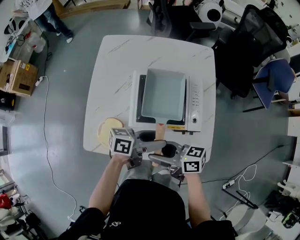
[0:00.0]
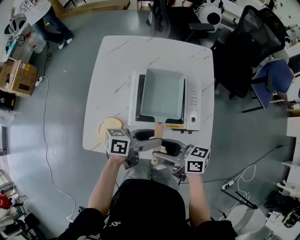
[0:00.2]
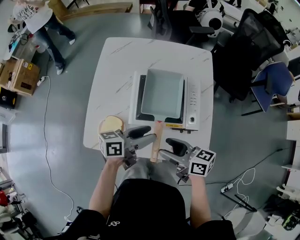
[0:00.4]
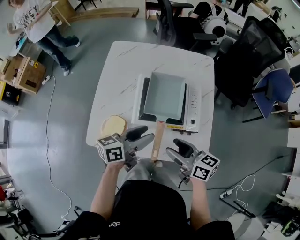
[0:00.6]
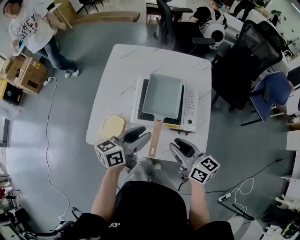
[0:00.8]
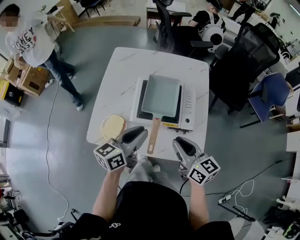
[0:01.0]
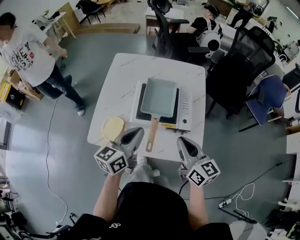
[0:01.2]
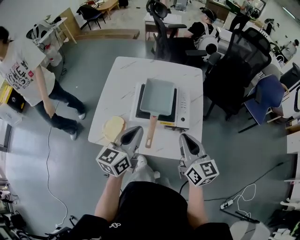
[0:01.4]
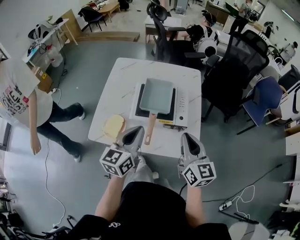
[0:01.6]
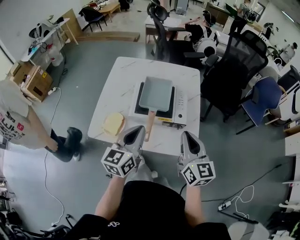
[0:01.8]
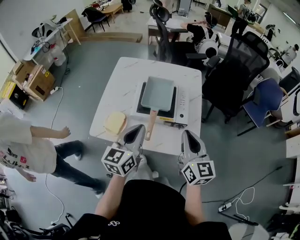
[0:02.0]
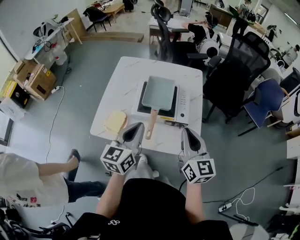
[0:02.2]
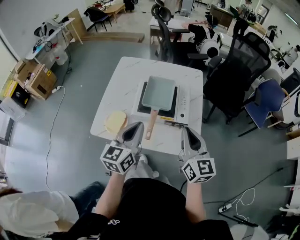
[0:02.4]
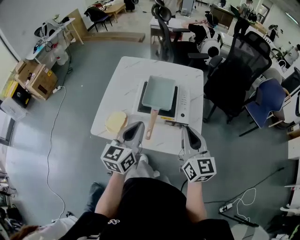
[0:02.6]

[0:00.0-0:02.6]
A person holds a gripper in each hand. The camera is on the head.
0:00.0 to 0:01.2: The right gripper moves about 15 cm, changes its angle by roughly 50 degrees, and closes up. The left gripper travels upward by about 10 cm, changes its angle by roughly 50 degrees, and closes.
0:01.2 to 0:02.6: The right gripper is displaced upward by some 5 cm. Meanwhile the left gripper ends up about 5 cm from where it was.

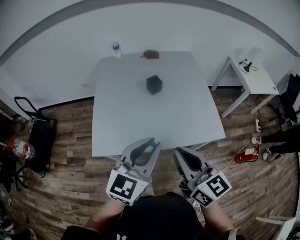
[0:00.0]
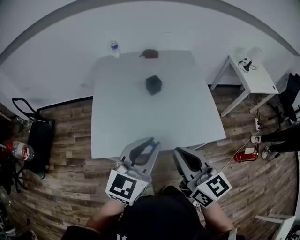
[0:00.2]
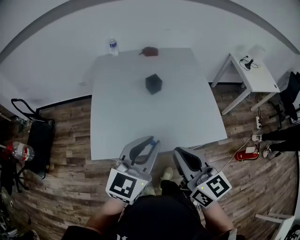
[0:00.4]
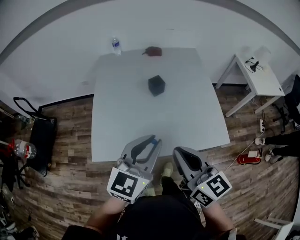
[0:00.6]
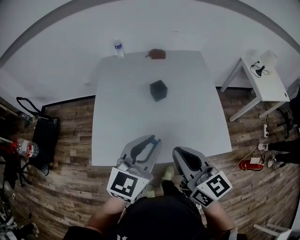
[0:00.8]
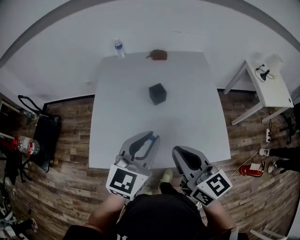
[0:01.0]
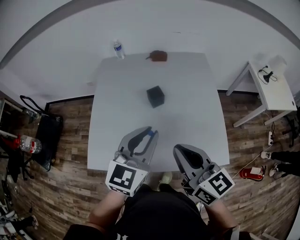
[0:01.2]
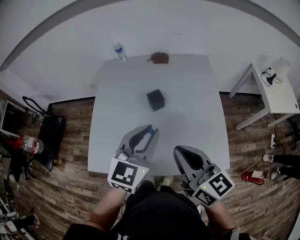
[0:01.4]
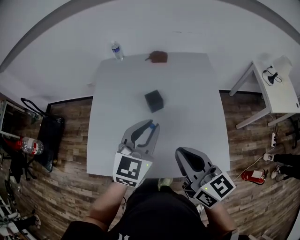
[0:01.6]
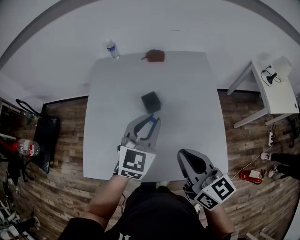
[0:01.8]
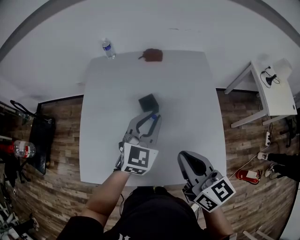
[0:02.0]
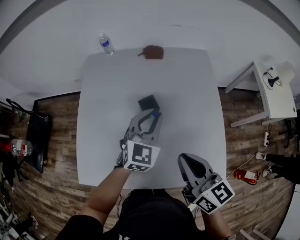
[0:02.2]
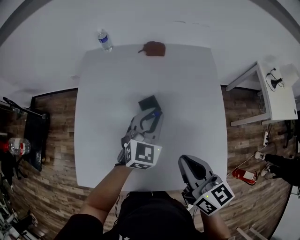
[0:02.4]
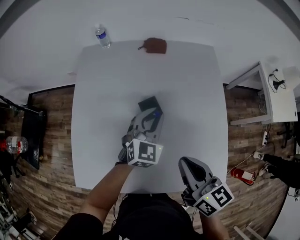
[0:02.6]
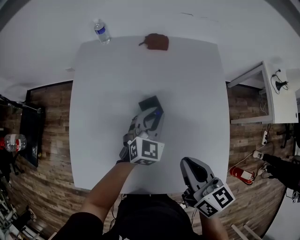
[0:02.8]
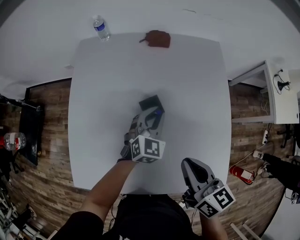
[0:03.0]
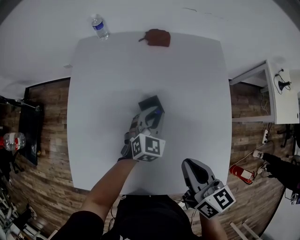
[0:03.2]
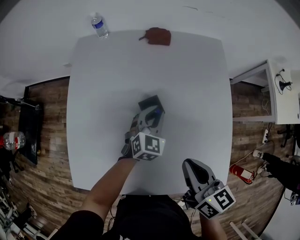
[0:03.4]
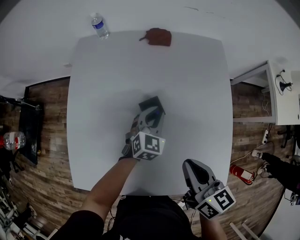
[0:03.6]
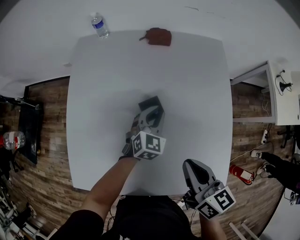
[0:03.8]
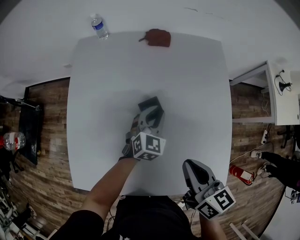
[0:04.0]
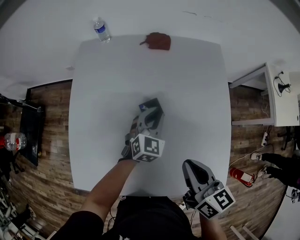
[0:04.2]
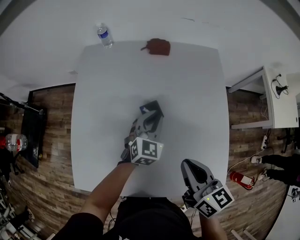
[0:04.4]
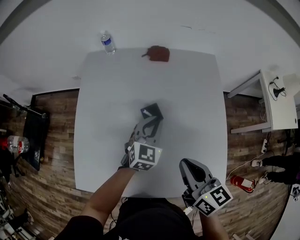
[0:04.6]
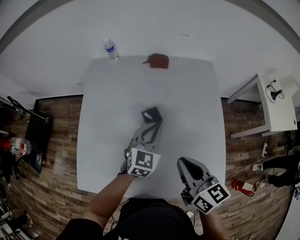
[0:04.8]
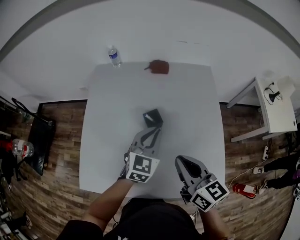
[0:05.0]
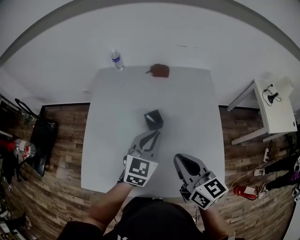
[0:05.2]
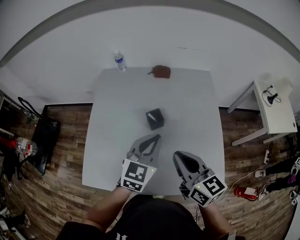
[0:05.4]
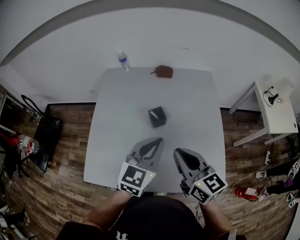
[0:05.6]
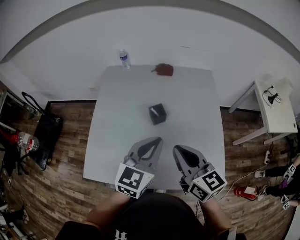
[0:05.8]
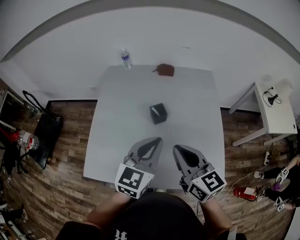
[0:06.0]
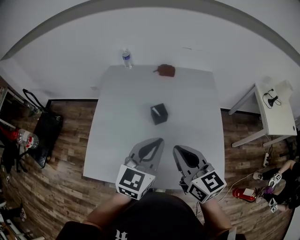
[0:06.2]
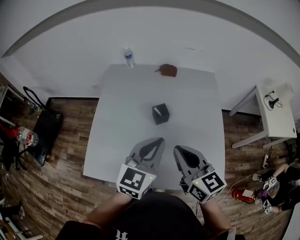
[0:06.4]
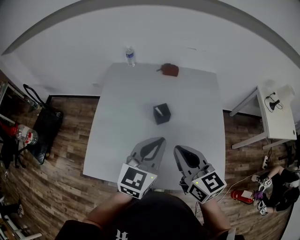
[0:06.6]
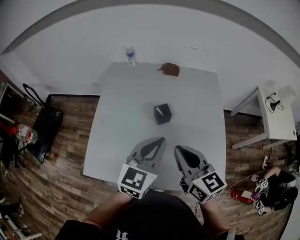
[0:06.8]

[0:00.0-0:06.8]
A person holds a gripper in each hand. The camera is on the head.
0:00.0 to 0:01.4: The left gripper heads forward, covering approximately 20 cm, while the right gripper heads forward and to the right, covering roughly 20 cm.
0:01.4 to 0:02.8: The right gripper travels forward and downward by about 20 cm, and turns by roughly 20 degrees. Meanwhile the left gripper travels forward and downward by approximately 30 cm.
0:02.8 to 0:04.0: The left gripper heads downward, covering some 5 cm.
0:04.0 to 0:05.4: The left gripper goes roughly 25 cm upward and backward. Meanwhile the right gripper travels upward and backward by approximately 10 cm, and swivels approximately 20 degrees.
0:05.4 to 0:06.8: The left gripper changes place by roughly 5 cm.

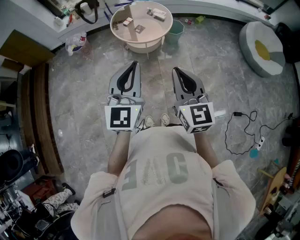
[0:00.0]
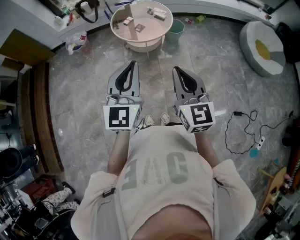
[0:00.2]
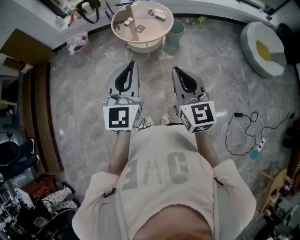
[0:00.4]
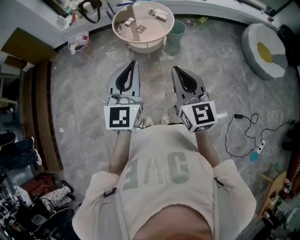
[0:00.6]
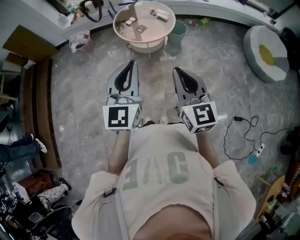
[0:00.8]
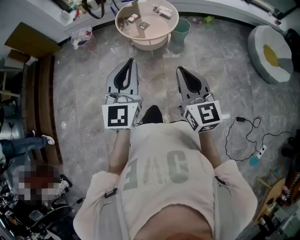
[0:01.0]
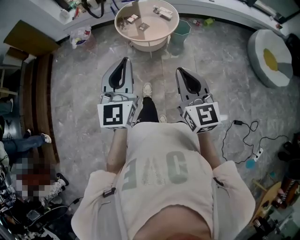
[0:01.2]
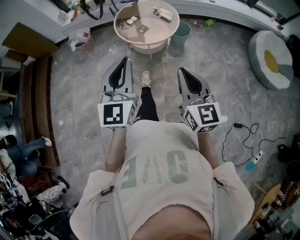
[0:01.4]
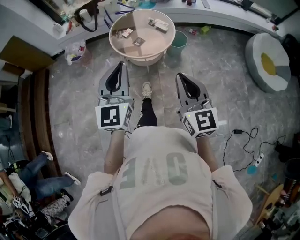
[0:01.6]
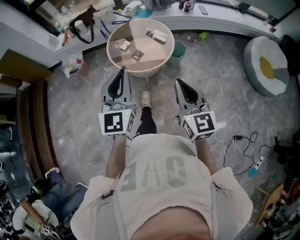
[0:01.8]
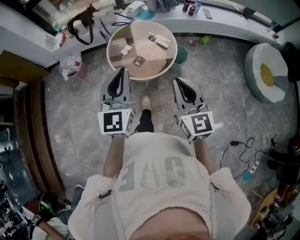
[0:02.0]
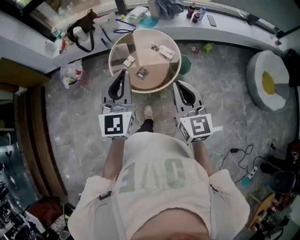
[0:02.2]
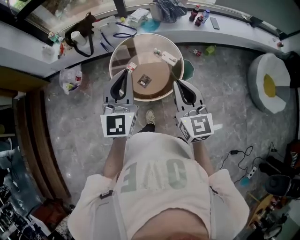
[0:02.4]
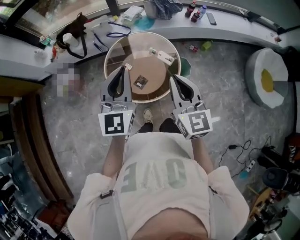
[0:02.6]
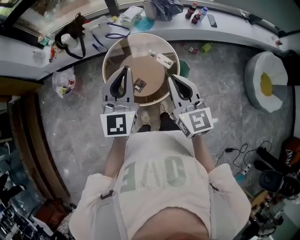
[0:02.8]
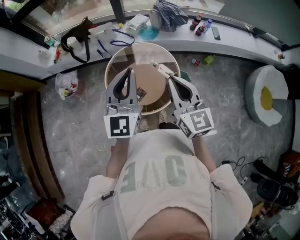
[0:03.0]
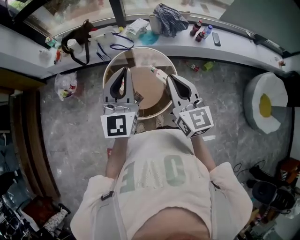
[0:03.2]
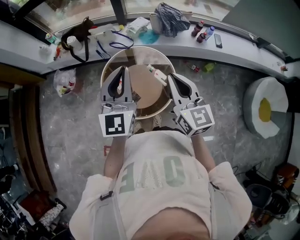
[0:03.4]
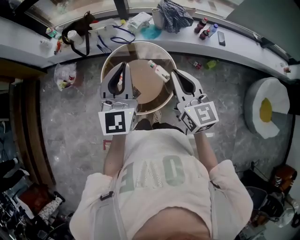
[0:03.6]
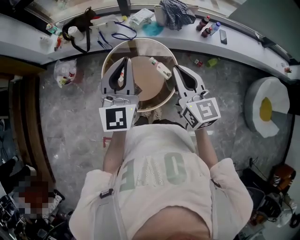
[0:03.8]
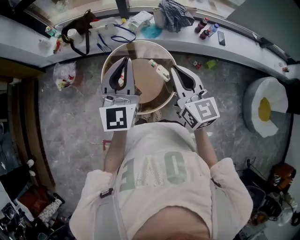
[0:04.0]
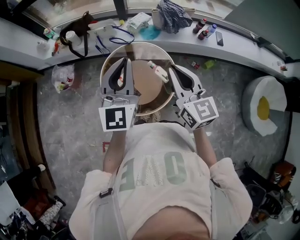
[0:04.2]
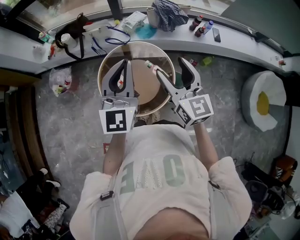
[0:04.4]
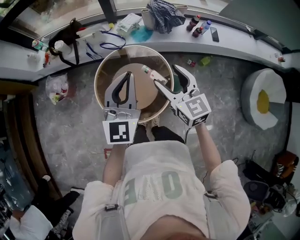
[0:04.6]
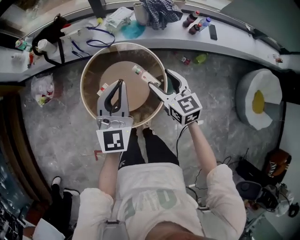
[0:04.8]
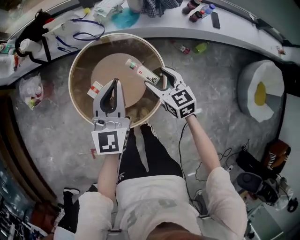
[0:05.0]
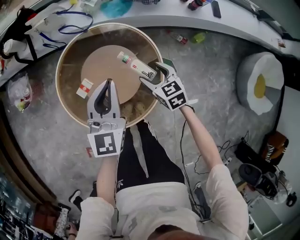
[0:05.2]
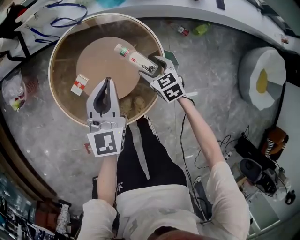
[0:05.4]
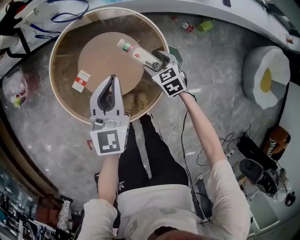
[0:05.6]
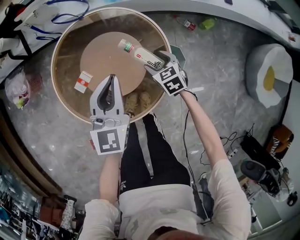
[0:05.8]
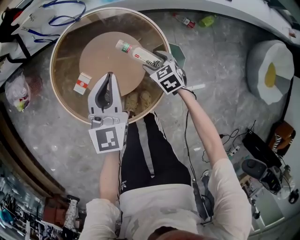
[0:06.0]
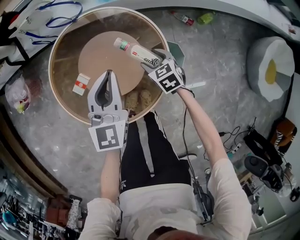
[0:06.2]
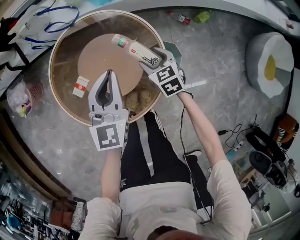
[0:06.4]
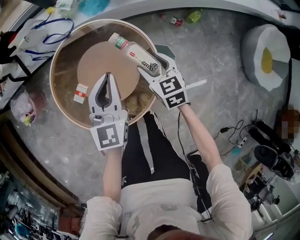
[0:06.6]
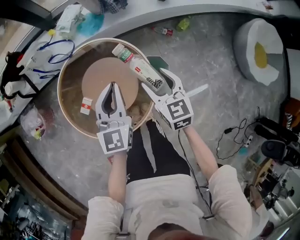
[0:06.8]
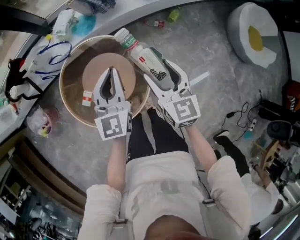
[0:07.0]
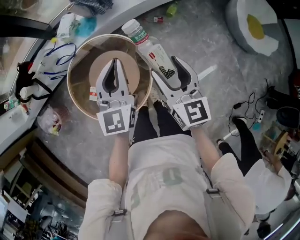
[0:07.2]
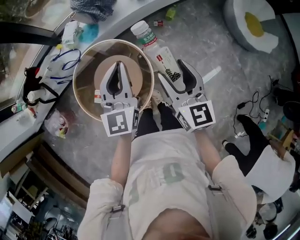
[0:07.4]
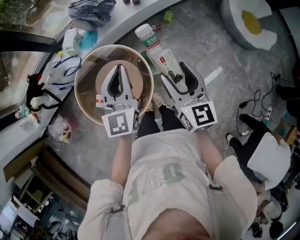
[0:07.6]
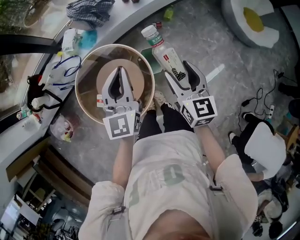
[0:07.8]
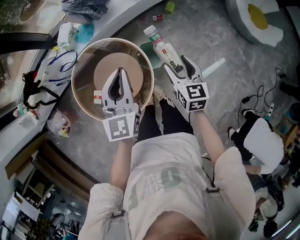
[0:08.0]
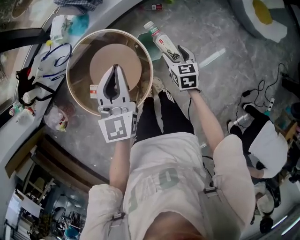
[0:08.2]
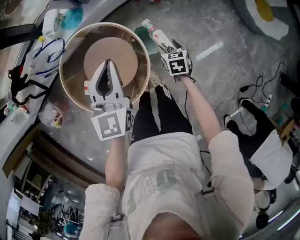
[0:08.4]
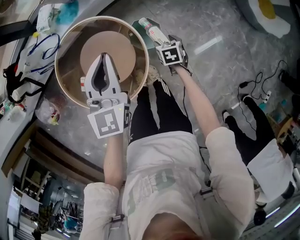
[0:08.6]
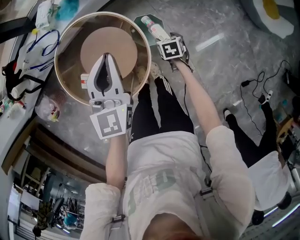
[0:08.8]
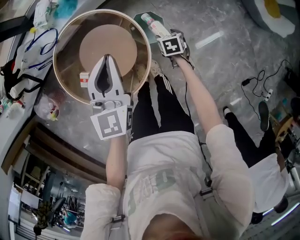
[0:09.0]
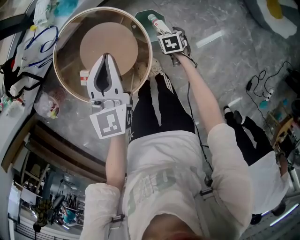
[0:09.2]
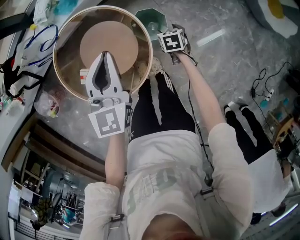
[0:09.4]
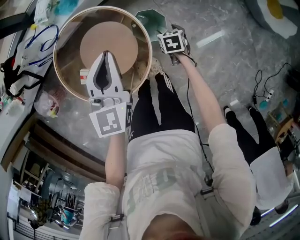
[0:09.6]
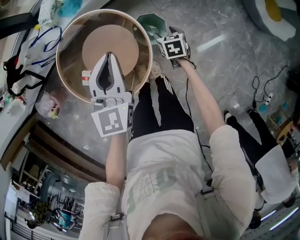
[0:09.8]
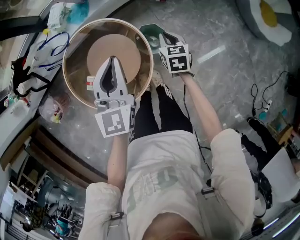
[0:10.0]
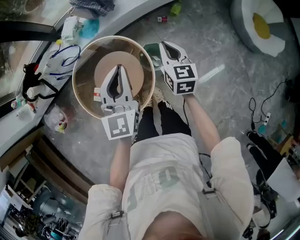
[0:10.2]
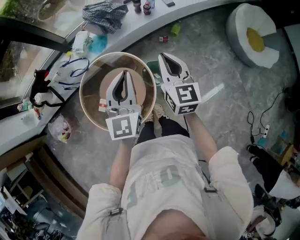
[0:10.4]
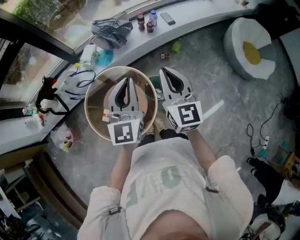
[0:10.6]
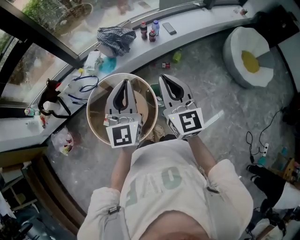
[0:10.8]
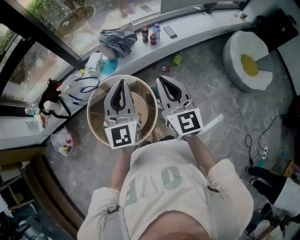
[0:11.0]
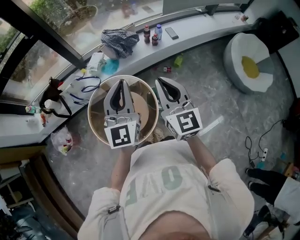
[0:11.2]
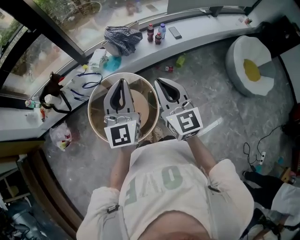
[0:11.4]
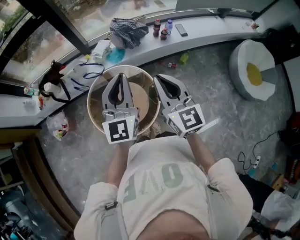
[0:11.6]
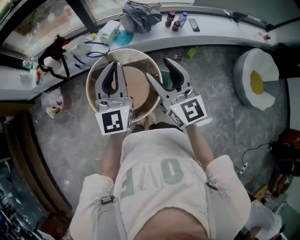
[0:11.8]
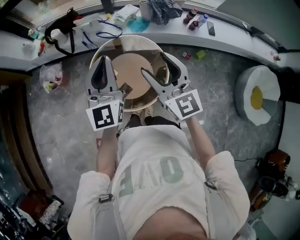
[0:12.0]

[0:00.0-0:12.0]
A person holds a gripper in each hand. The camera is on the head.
0:00.0 to 0:01.6: The right gripper moves forward and to the right, some 15 cm, while the left gripper heads forward, covering approximately 15 cm.
0:01.6 to 0:03.0: The pair of grippers is taken forward, approximately 50 cm.
0:03.0 to 0:04.4: The grippers both shift forward by roughly 5 cm. The right gripper opens.
0:04.4 to 0:06.0: The two grippers go about 50 cm downward. The left gripper swivels some 30 degrees. Meanwhile the right gripper tilts its fingers roughly 50 degrees downward.
0:06.0 to 0:07.6: The left gripper is displaced upward by roughly 25 cm, and changes its angle by some 20 degrees. Meanwhile the right gripper heads upward, covering about 50 cm, and tips its fingers upward by some 40 degrees.
0:07.6 to 0:09.0: The left gripper moves downward, approximately 15 cm, while the right gripper shifts roughly 40 cm downward, and tips its fingers downward by about 60 degrees.
0:09.0 to 0:10.4: The left gripper heads upward, covering some 15 cm, while the right gripper heads upward, covering roughly 40 cm, points its fingers approximately 60 degrees further upward, and closes its fingers.
0:10.4 to 0:12.0: The left gripper ends up about 25 cm from where it was, and rotates some 30 degrees. The right gripper ends up roughly 25 cm from where it was, swivels roughly 50 degrees, and opens.

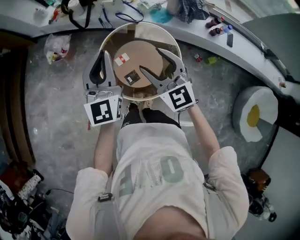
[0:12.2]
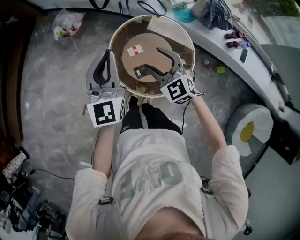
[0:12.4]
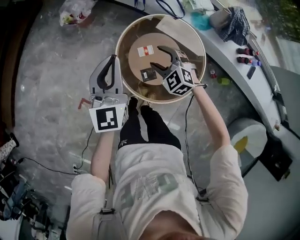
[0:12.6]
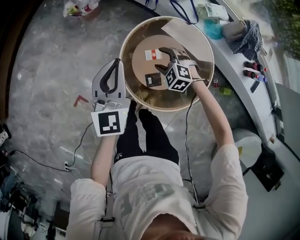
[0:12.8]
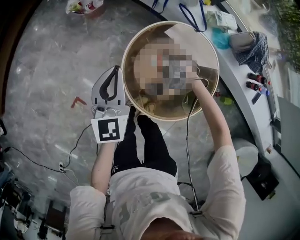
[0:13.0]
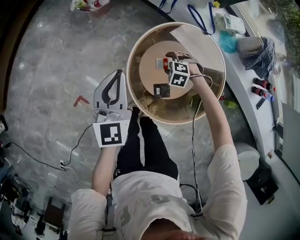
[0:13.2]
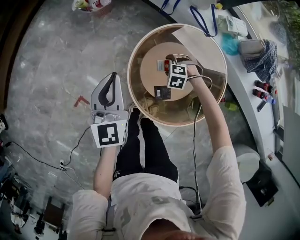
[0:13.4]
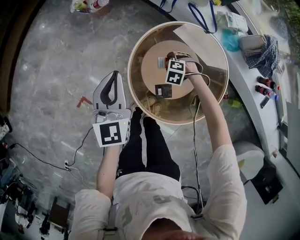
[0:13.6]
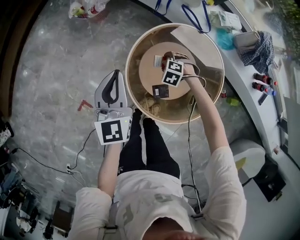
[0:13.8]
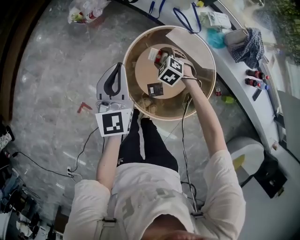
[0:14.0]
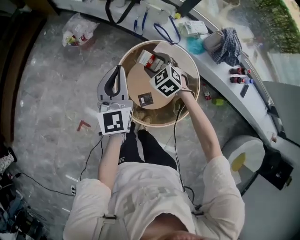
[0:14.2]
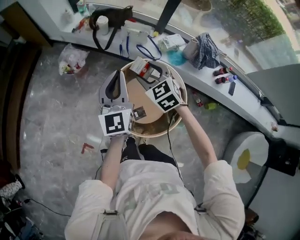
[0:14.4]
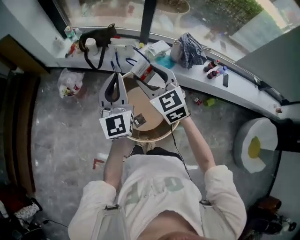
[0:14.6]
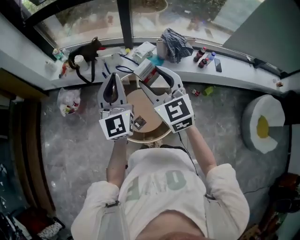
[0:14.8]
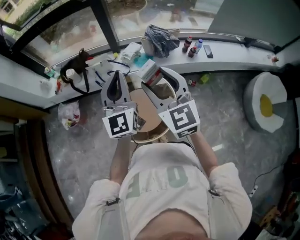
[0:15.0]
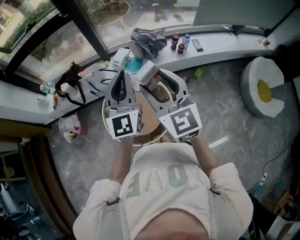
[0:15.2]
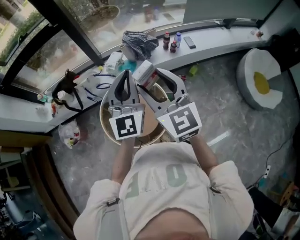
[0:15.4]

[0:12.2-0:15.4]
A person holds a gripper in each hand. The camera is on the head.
0:12.2 to 0:13.8: The right gripper goes about 50 cm downward, and angles its fingers downward, by approximately 60 degrees, while the left gripper goes some 25 cm downward, and turns by approximately 30 degrees.
0:13.8 to 0:15.4: The left gripper moves roughly 50 cm, and tilts its fingers some 30 degrees upward. Meanwhile the right gripper moves upward, approximately 70 cm, and tips its fingers upward by some 80 degrees.
